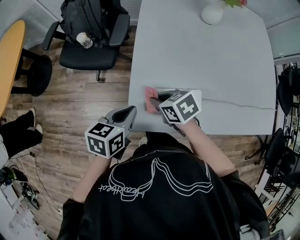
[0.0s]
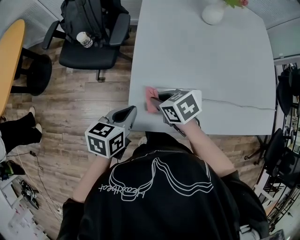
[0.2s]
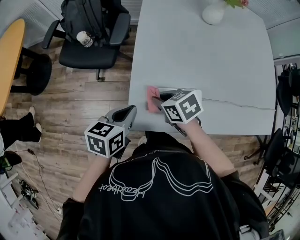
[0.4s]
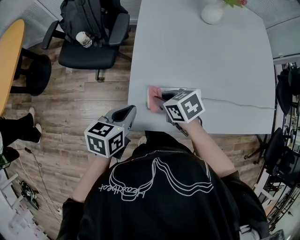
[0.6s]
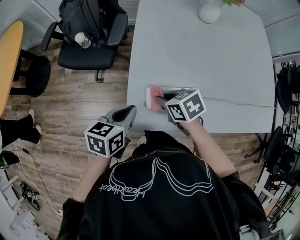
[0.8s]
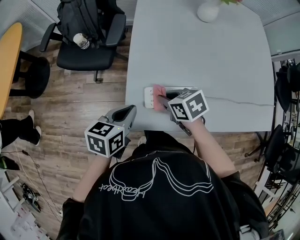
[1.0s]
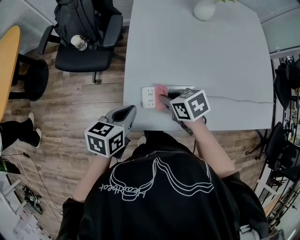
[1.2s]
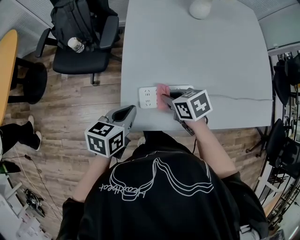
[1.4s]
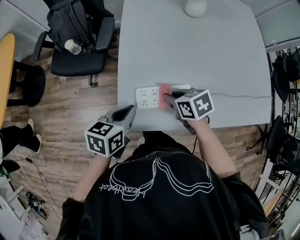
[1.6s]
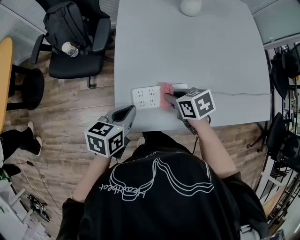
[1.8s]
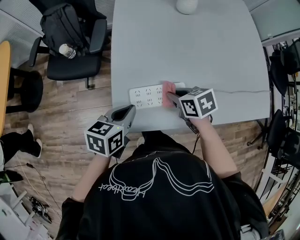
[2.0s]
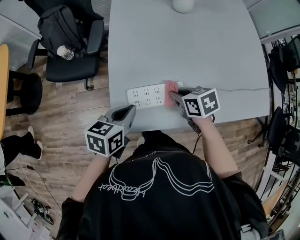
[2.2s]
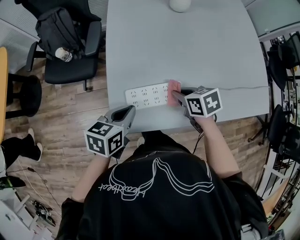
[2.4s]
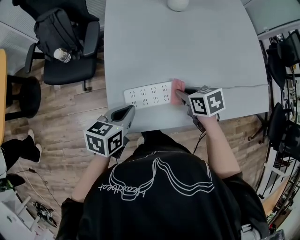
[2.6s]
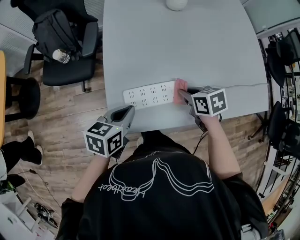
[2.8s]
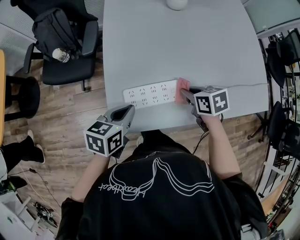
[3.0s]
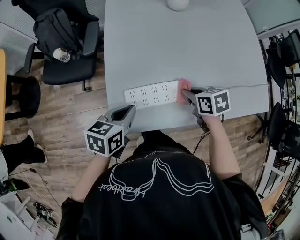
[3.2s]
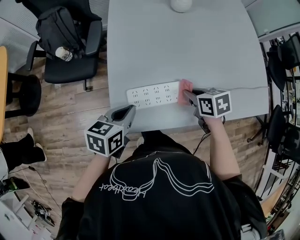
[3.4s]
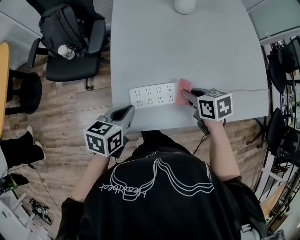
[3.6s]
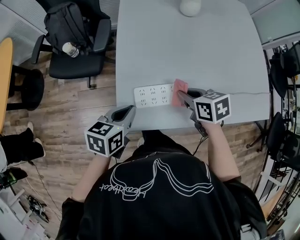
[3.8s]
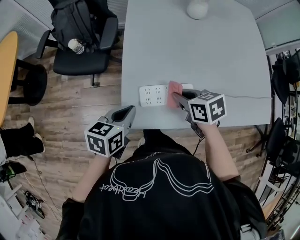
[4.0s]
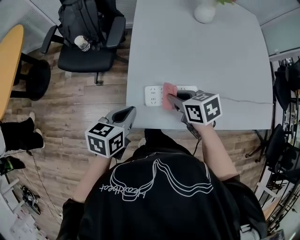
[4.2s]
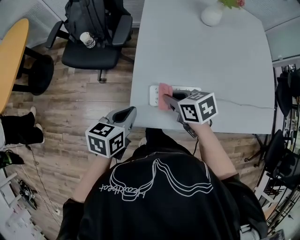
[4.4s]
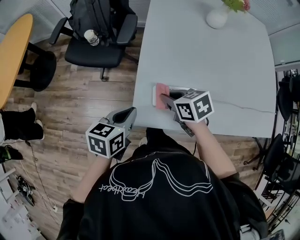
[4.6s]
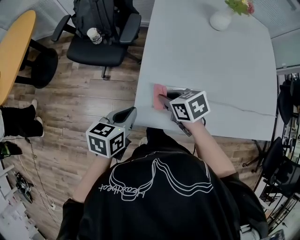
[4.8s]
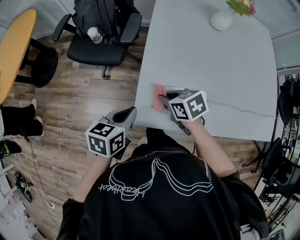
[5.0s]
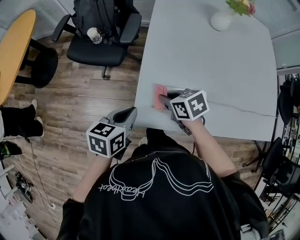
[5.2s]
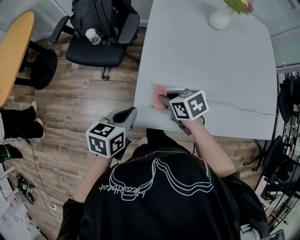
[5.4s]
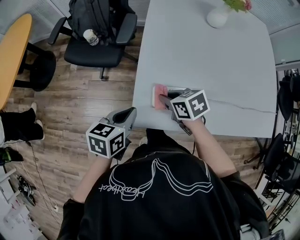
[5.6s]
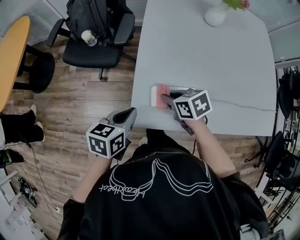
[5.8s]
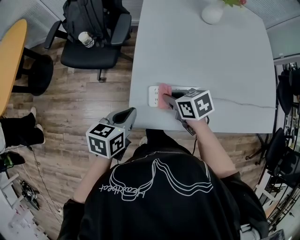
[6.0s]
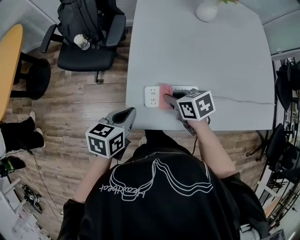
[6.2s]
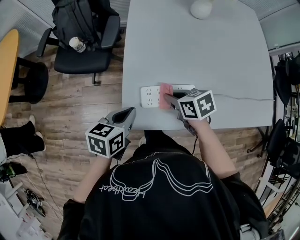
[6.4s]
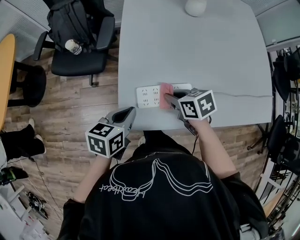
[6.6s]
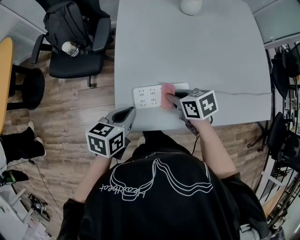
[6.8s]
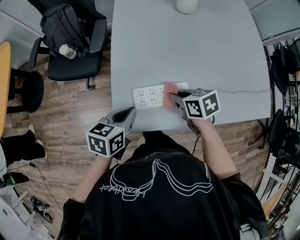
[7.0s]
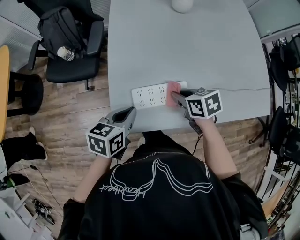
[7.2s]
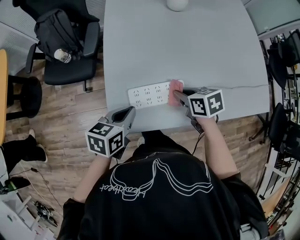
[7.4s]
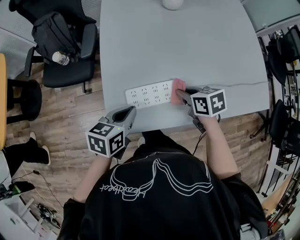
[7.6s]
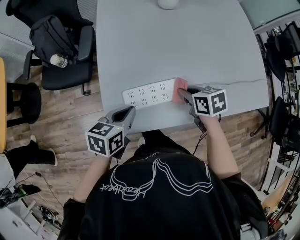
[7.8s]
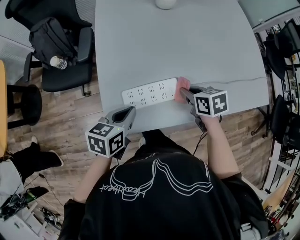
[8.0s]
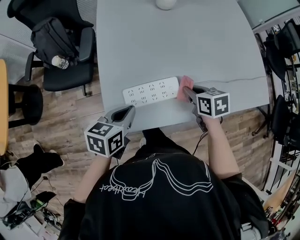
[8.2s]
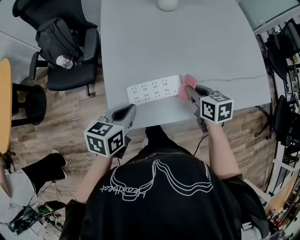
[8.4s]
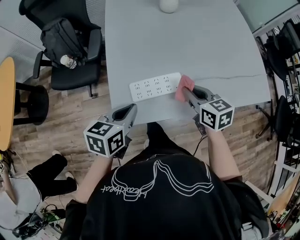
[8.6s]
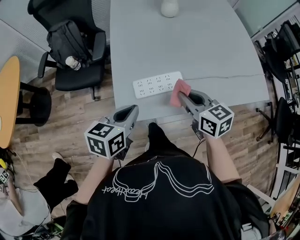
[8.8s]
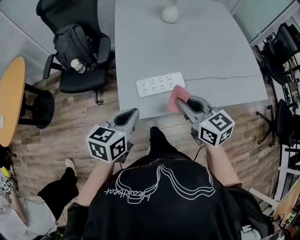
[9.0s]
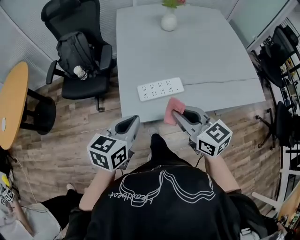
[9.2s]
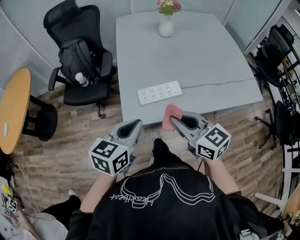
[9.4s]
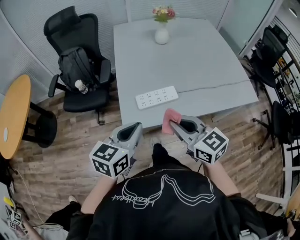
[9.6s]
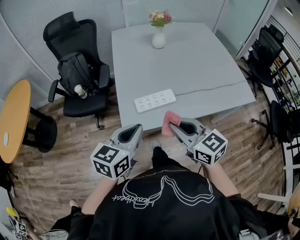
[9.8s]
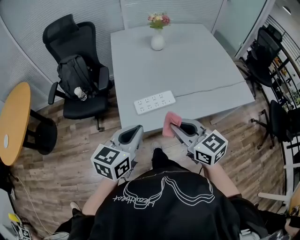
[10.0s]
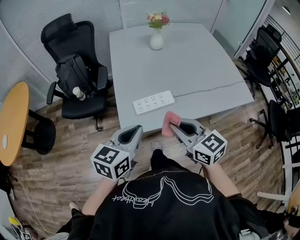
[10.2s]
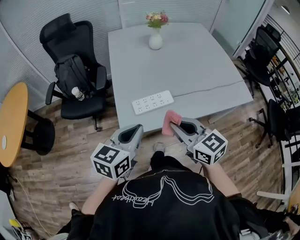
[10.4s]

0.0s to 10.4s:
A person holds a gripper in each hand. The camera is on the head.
0.0s to 1.4s: The right gripper shifts about 10 cm to the right.
1.4s to 3.0s: The right gripper is displaced to the right by approximately 15 cm. The left gripper travels to the right by some 5 cm.
3.0s to 4.4s: The left gripper heads to the left, covering approximately 10 cm; the right gripper goes about 20 cm to the left, and changes its angle by some 20 degrees.
4.4s to 6.0s: The grippers move only a little.
6.0s to 7.4s: The right gripper moves to the right, about 15 cm, while the left gripper travels to the right by approximately 10 cm.
7.4s to 9.0s: The grippers both shift upward and backward by roughly 15 cm. The right gripper angles its fingers upward, by some 30 degrees.
9.0s to 10.4s: The left gripper travels upward and backward by about 10 cm; the right gripper is displaced backward and upward by approximately 10 cm.

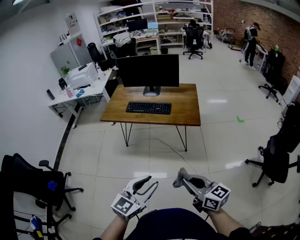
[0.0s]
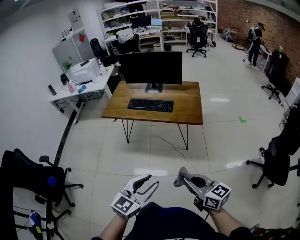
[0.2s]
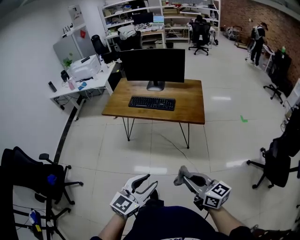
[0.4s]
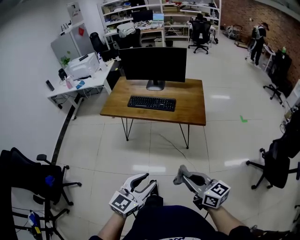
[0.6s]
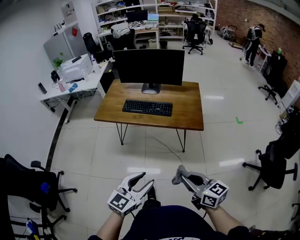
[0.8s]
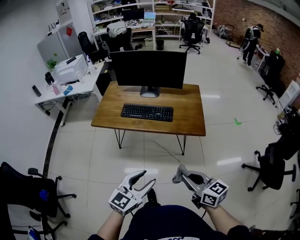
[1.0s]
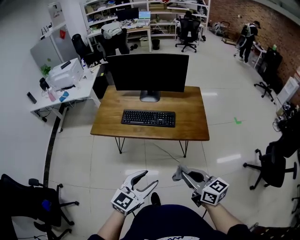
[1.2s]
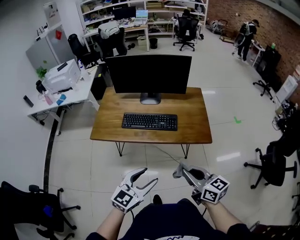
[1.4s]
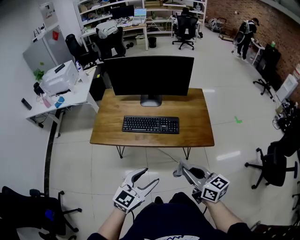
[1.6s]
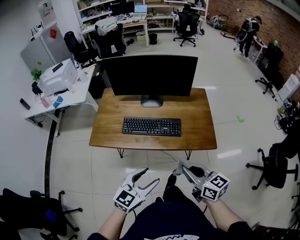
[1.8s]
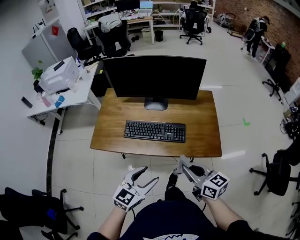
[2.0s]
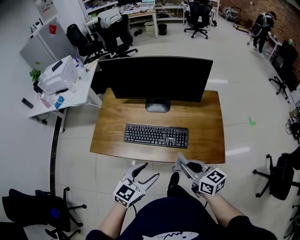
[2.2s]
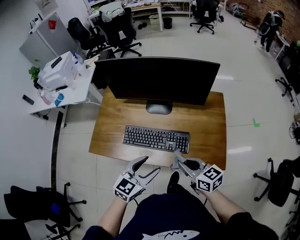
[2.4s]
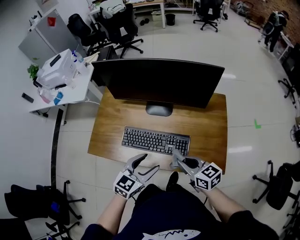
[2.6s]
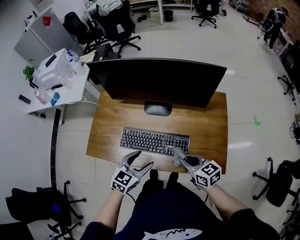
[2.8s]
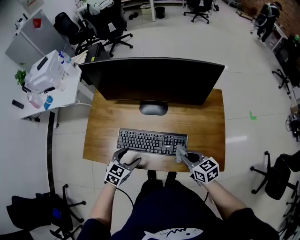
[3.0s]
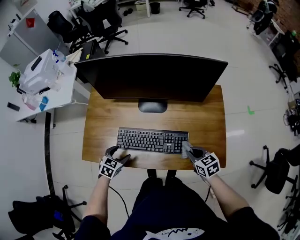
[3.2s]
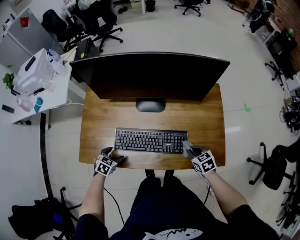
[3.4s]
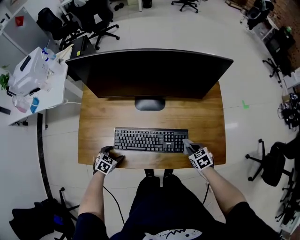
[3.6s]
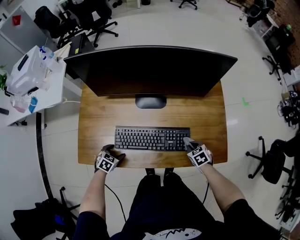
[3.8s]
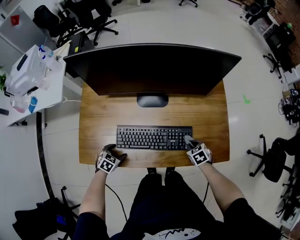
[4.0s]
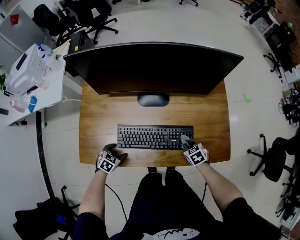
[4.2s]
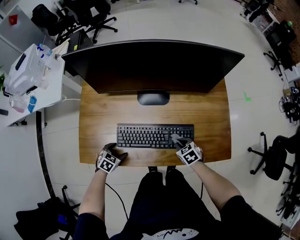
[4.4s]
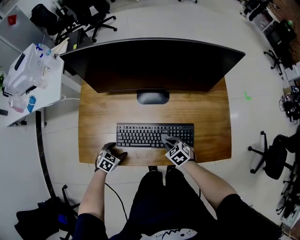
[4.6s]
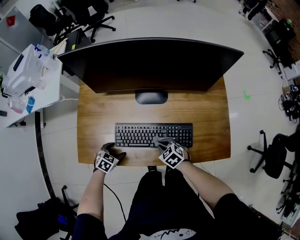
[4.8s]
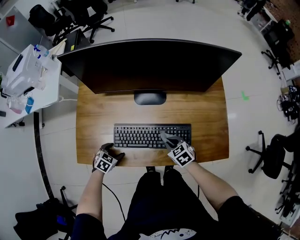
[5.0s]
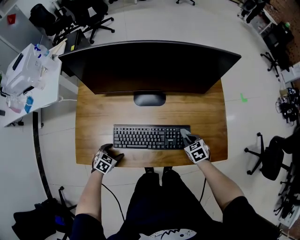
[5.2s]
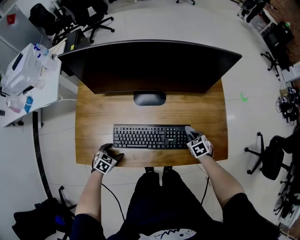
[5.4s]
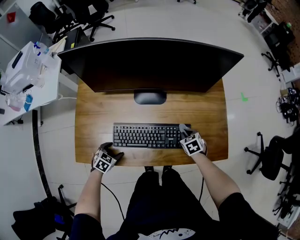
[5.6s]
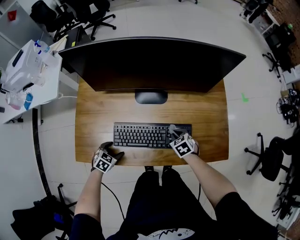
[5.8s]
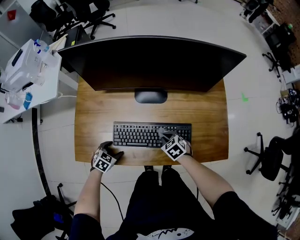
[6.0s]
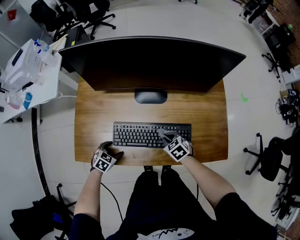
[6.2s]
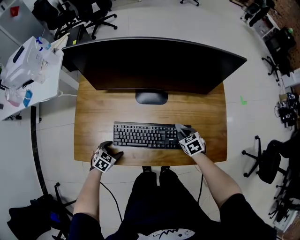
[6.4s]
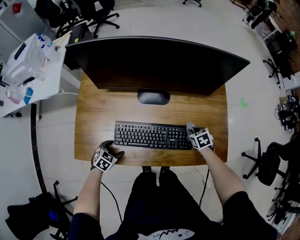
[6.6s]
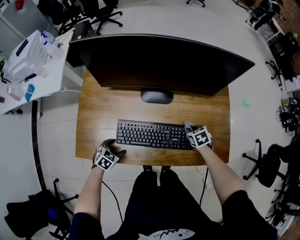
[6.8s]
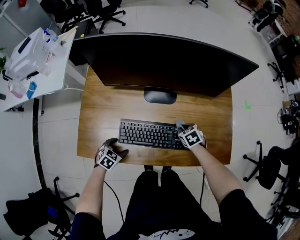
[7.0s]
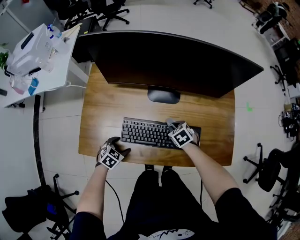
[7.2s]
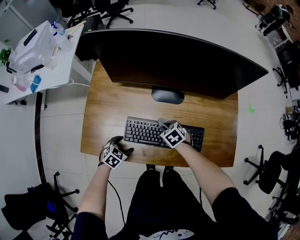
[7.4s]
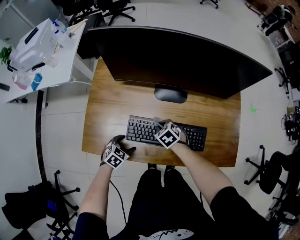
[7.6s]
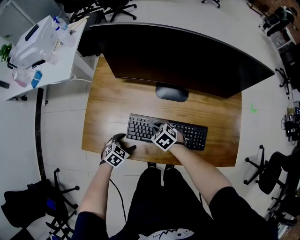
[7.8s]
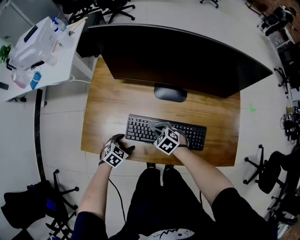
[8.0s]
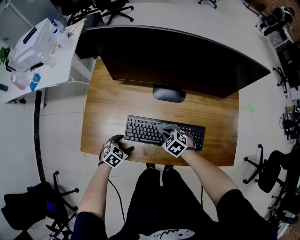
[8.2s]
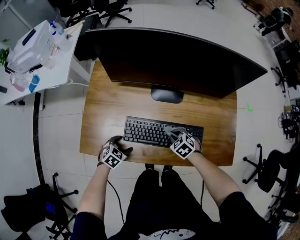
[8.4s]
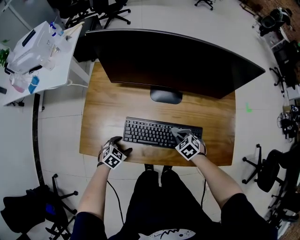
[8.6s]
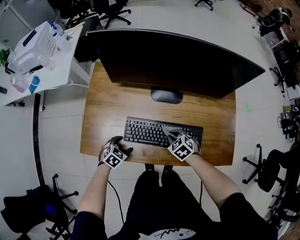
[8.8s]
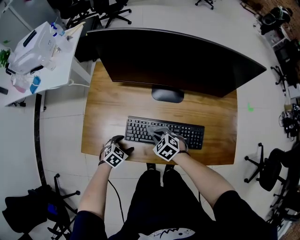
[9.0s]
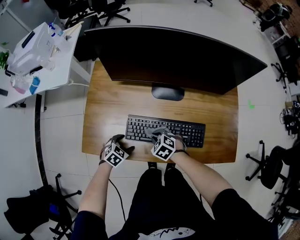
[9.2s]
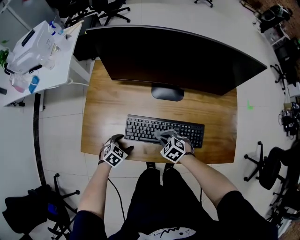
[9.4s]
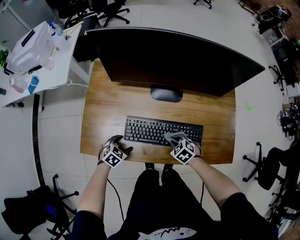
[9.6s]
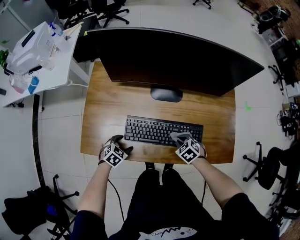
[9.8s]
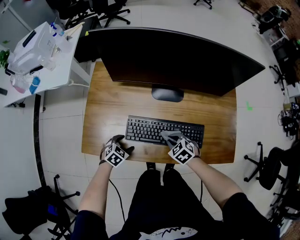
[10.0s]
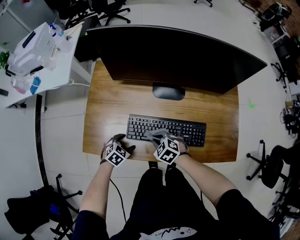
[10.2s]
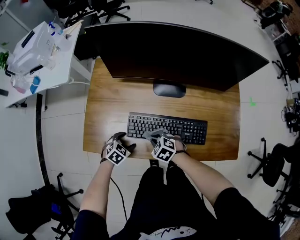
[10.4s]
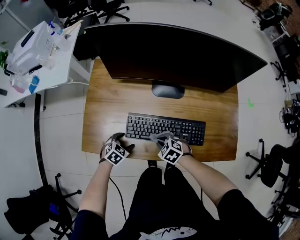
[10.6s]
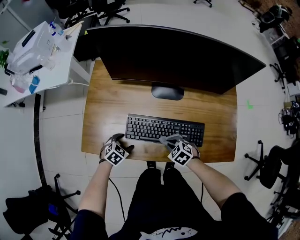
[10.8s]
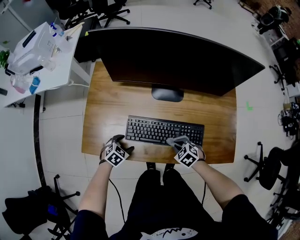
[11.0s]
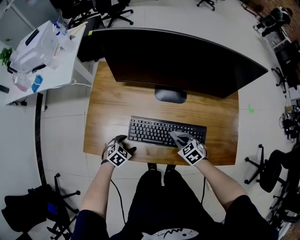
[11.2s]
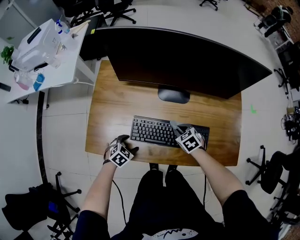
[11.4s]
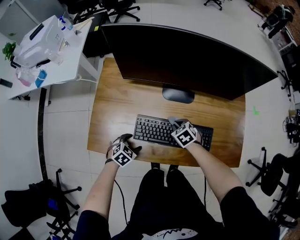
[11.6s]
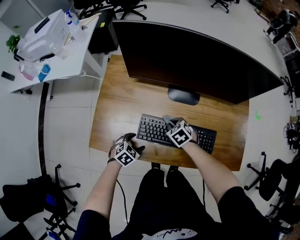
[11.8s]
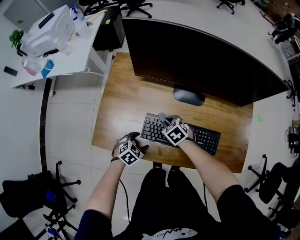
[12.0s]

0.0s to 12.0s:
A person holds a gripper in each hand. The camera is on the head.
0.0s to 1.6s: The two grippers go approximately 35 cm forward.
1.6s to 3.0s: Both grippers travel together forward and downward, some 40 cm. The right gripper rotates approximately 20 degrees; the left gripper swivels roughly 30 degrees.
3.0s to 4.4s: The right gripper is displaced downward by about 15 cm, and swivels some 30 degrees, while the left gripper is displaced downward and to the left by approximately 20 cm, and changes its angle by about 20 degrees.
4.4s to 6.0s: The right gripper swings left and right, some 20 cm each way, with 2 reversals.
6.0s to 7.6s: The right gripper shifts roughly 10 cm to the left.
7.6s to 9.0s: The right gripper travels backward by approximately 5 cm, and moves approximately 10 cm to the right and comes back.
9.0s to 10.4s: The right gripper travels to the right and back again, some 15 cm each way.
10.4s to 12.0s: The right gripper is displaced forward by approximately 10 cm, and goes to the right and returns, about 15 cm each way.

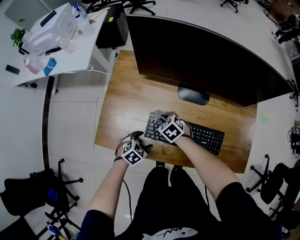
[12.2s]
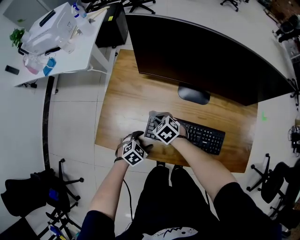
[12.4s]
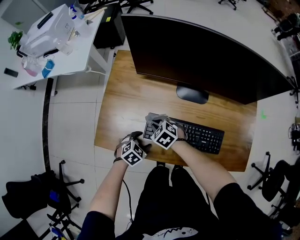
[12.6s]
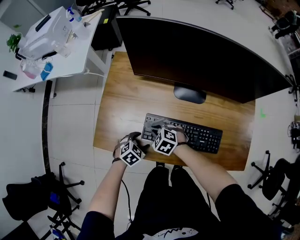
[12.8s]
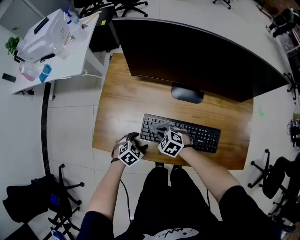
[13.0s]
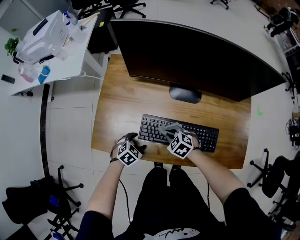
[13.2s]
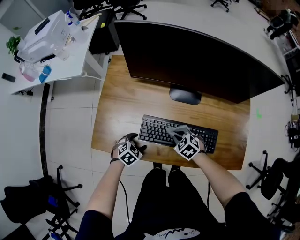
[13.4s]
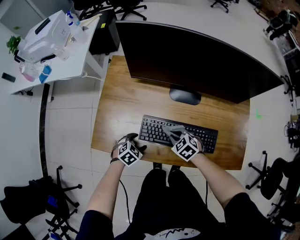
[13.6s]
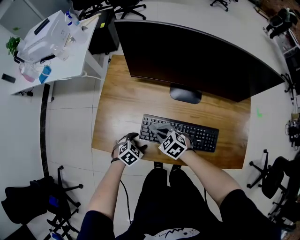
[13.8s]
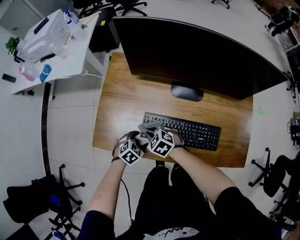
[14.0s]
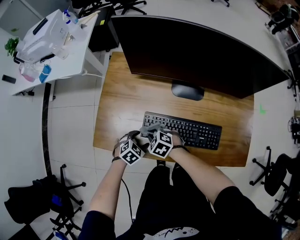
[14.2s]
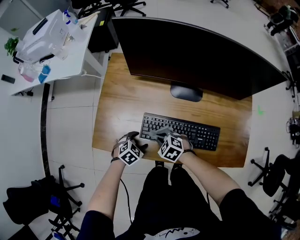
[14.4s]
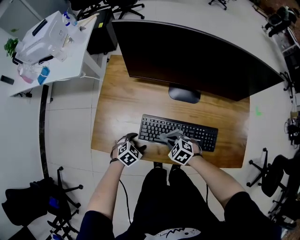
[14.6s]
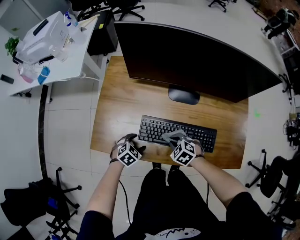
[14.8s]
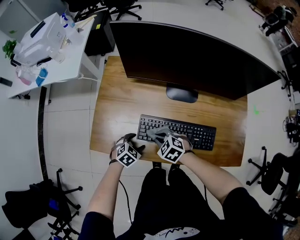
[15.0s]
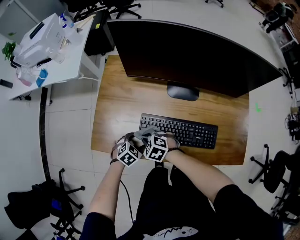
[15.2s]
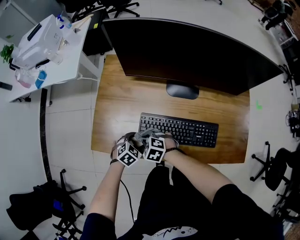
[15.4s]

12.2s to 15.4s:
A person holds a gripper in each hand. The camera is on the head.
12.2s to 13.8s: The right gripper heads backward, covering some 5 cm, and reaches some 10 cm to the right, then returns.
13.8s to 15.4s: The right gripper ends up some 10 cm from where it was.
